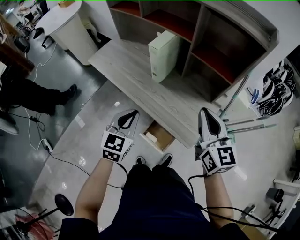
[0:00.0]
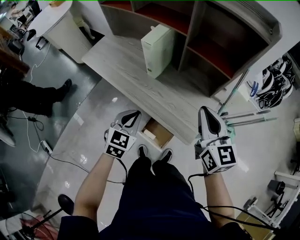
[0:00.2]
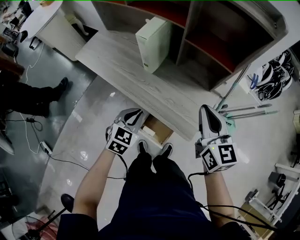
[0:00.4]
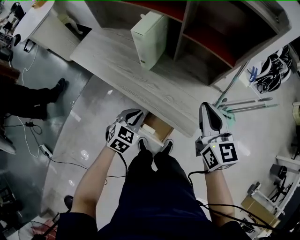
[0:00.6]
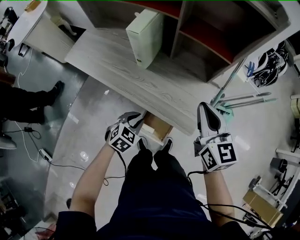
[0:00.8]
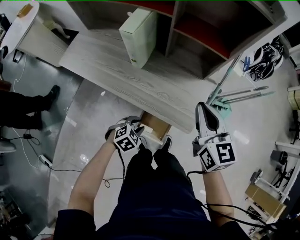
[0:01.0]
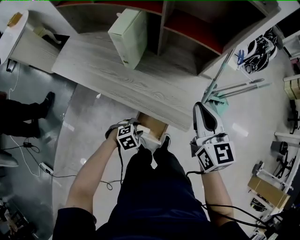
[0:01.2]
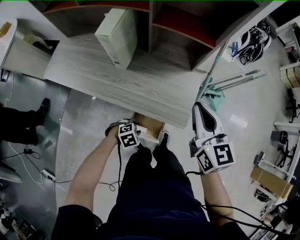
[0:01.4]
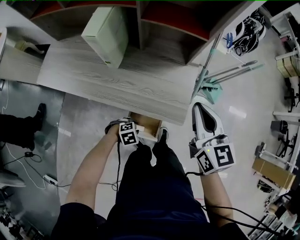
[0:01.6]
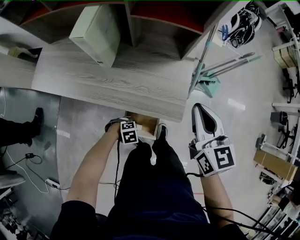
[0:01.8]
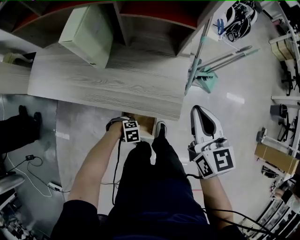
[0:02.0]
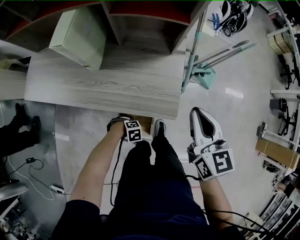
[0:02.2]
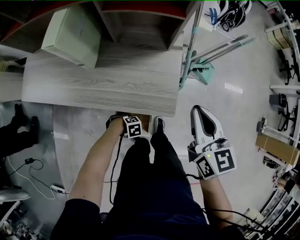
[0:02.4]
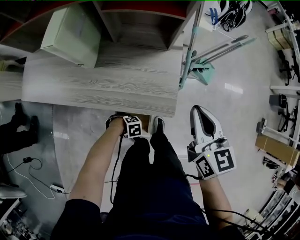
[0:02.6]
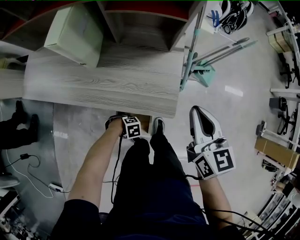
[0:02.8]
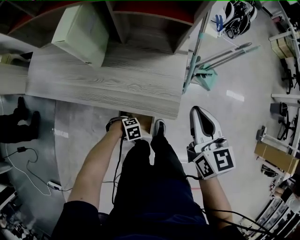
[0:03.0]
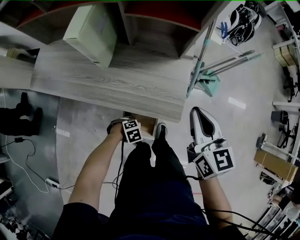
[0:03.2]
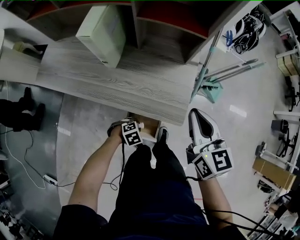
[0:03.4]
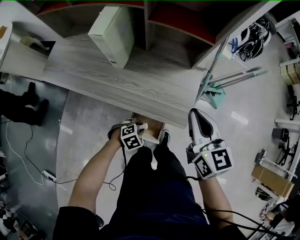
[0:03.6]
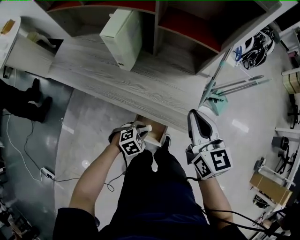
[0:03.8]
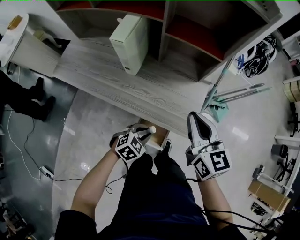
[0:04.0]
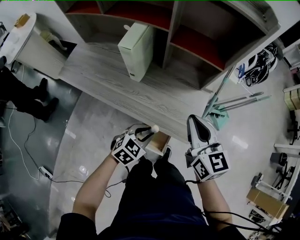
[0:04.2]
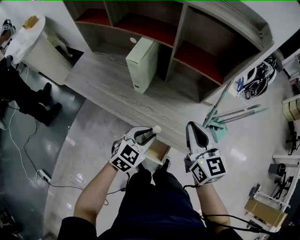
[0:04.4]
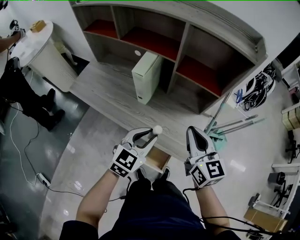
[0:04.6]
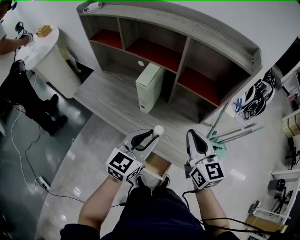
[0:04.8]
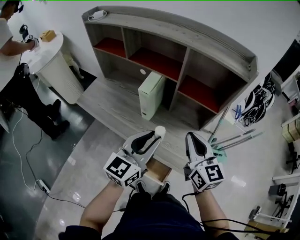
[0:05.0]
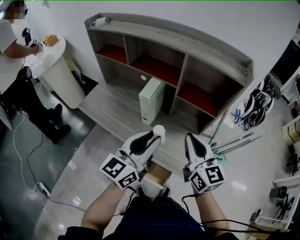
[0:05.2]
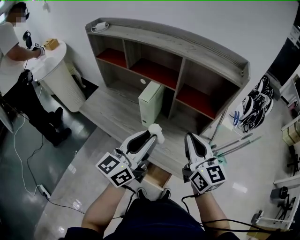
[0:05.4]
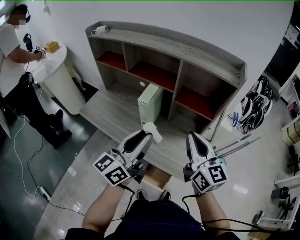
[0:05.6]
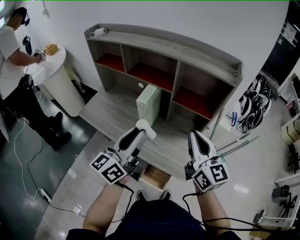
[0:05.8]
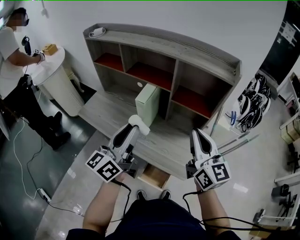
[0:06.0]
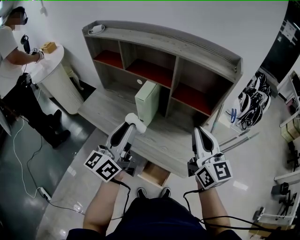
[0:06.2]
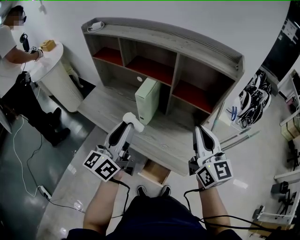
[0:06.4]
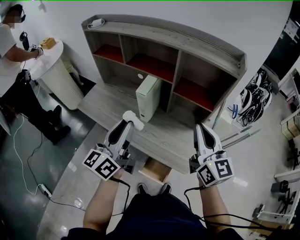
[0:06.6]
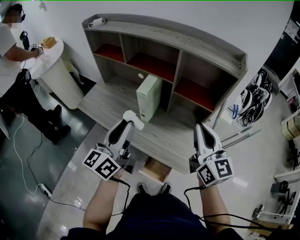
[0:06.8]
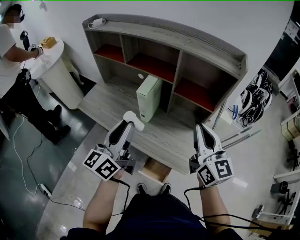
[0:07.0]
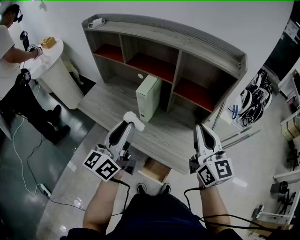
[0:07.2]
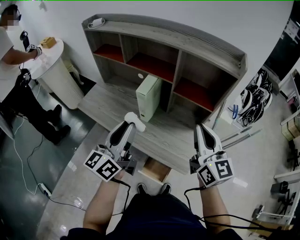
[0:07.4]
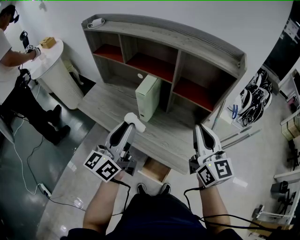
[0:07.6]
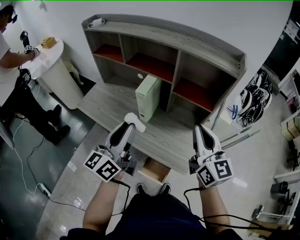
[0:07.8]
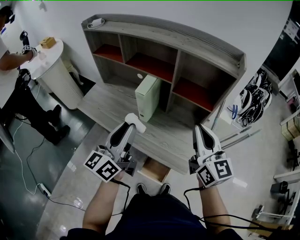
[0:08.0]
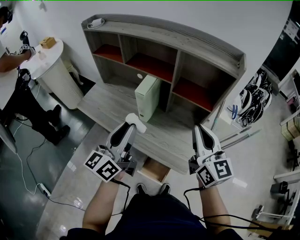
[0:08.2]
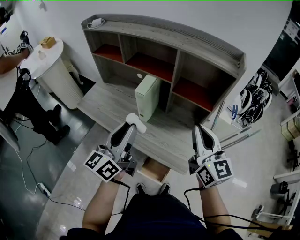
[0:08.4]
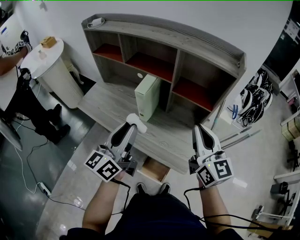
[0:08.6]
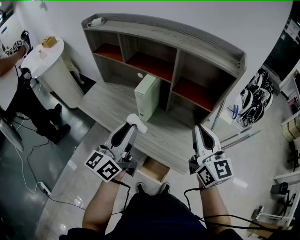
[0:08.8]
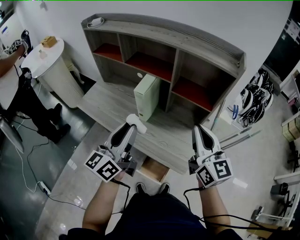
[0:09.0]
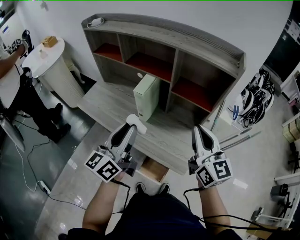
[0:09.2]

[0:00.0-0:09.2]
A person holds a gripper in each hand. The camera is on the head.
0:00.0 to 0:01.6: The left gripper heads downward, covering some 35 cm, tilts its fingers approximately 50 degrees downward, and opens up; the right gripper travels downward by about 10 cm, and swivels about 20 degrees.
0:01.6 to 0:03.0: The left gripper moves downward, some 5 cm. The right gripper changes place by roughly 5 cm.
0:03.0 to 0:04.6: The right gripper changes place by some 15 cm, and turns by roughly 20 degrees, while the left gripper goes roughly 40 cm upward, and points its fingers about 50 degrees further upward.
0:04.6 to 0:06.2: The left gripper heads upward and to the left, covering approximately 20 cm, and points its fingers about 30 degrees further upward, while the right gripper is displaced upward by roughly 15 cm.
0:06.2 to 0:09.2: There are only small adjustments of the grippers.

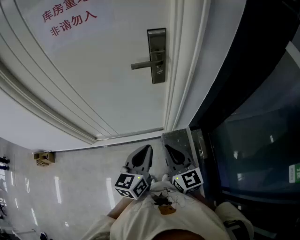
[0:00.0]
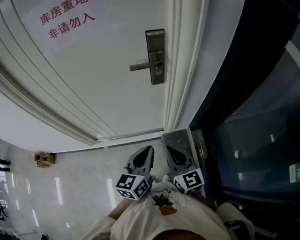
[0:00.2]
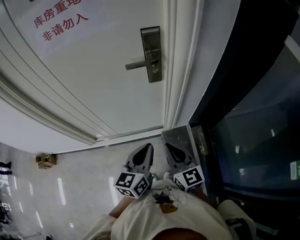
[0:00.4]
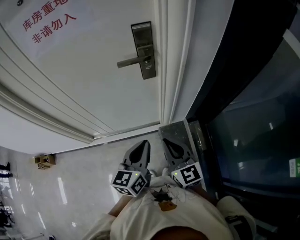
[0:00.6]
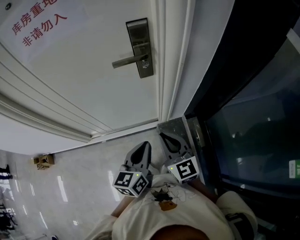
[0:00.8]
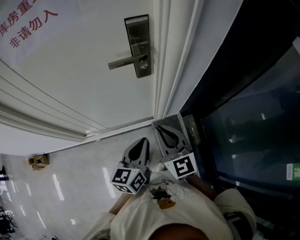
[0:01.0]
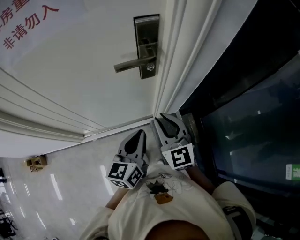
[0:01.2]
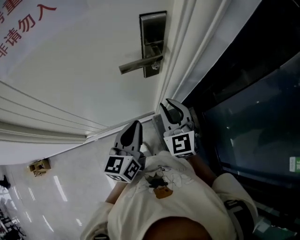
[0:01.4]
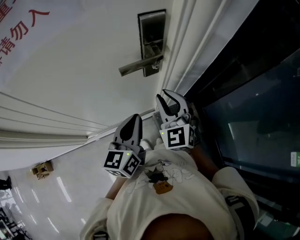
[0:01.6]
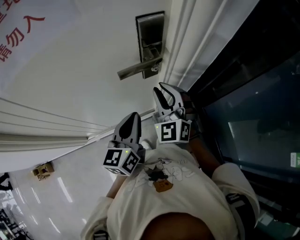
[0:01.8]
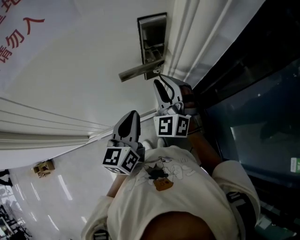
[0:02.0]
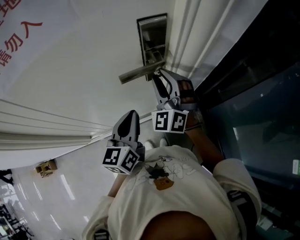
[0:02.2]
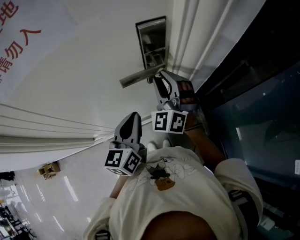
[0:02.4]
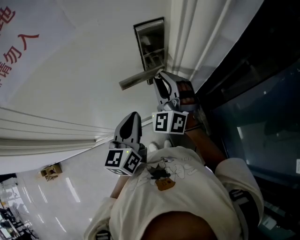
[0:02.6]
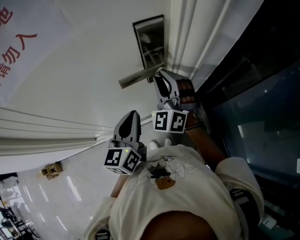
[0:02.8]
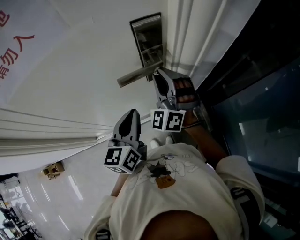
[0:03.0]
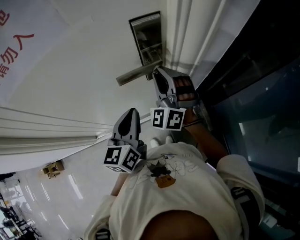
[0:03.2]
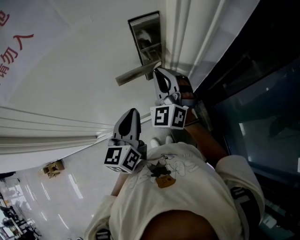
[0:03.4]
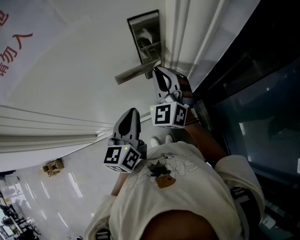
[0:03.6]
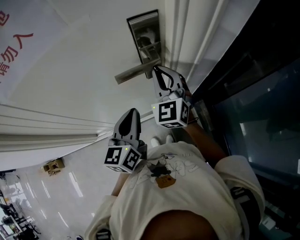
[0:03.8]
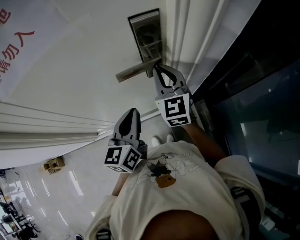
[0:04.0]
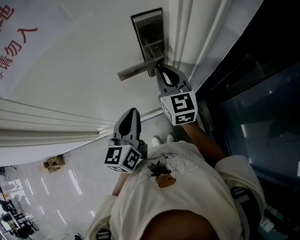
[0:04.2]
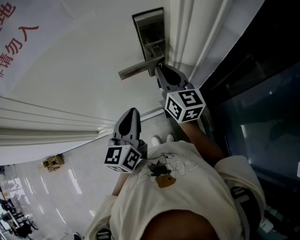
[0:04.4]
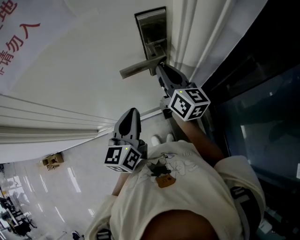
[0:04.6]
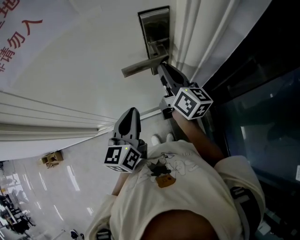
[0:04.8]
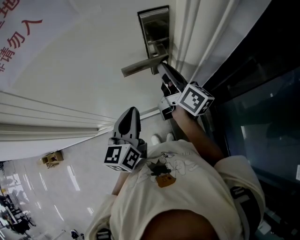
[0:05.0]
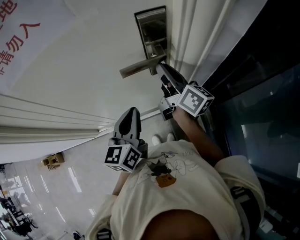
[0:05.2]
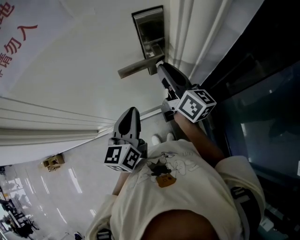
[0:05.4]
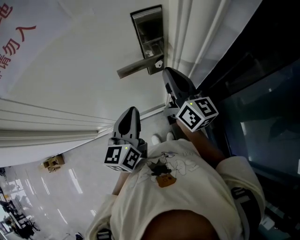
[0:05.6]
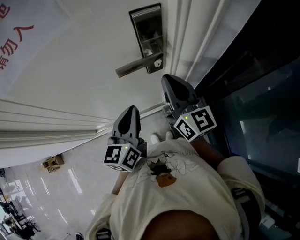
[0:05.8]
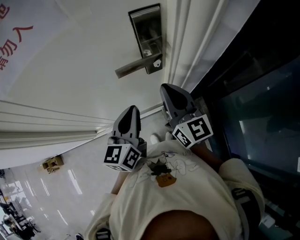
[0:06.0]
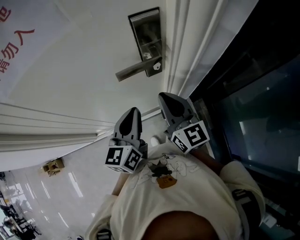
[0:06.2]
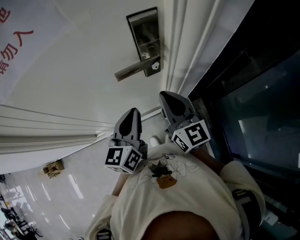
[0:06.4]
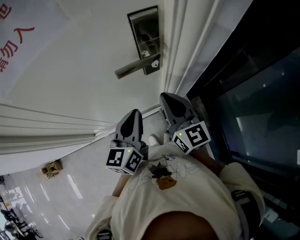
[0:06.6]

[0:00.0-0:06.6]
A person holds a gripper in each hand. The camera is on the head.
0:00.0 to 0:01.6: Both grippers travel together forward, roughly 20 cm. The right gripper changes its angle by about 40 degrees, and opens.
0:01.6 to 0:03.2: The right gripper travels forward by roughly 10 cm, and swivels approximately 30 degrees.
0:03.2 to 0:05.0: The right gripper rolls clockwise, seen from behind, by roughly 110 degrees.
0:05.0 to 0:06.6: The right gripper goes about 10 cm backward, and turns by about 40 degrees.

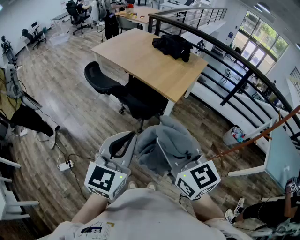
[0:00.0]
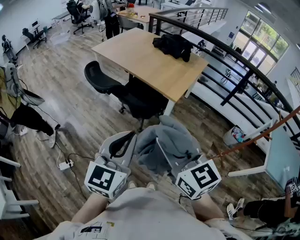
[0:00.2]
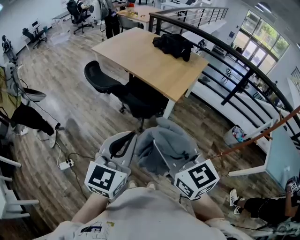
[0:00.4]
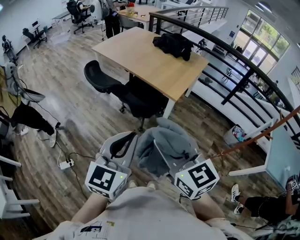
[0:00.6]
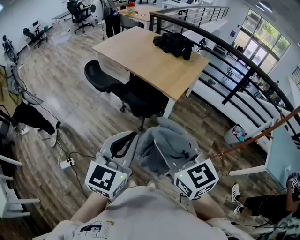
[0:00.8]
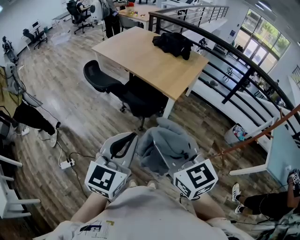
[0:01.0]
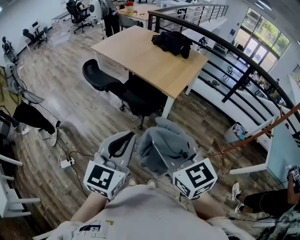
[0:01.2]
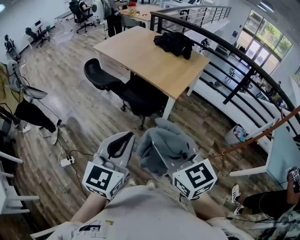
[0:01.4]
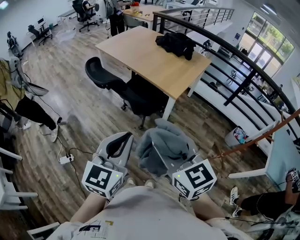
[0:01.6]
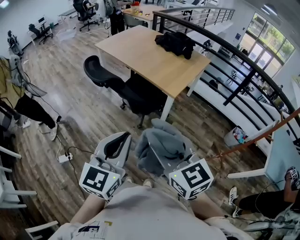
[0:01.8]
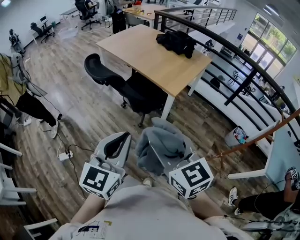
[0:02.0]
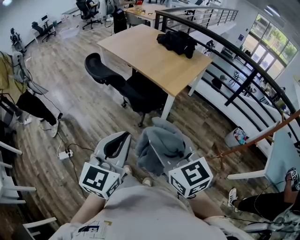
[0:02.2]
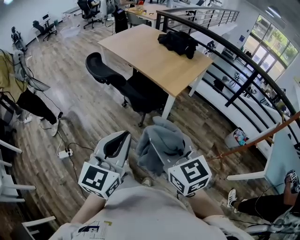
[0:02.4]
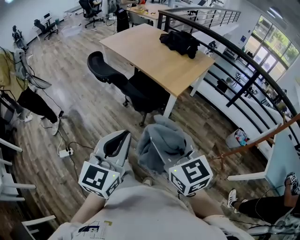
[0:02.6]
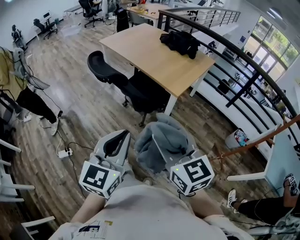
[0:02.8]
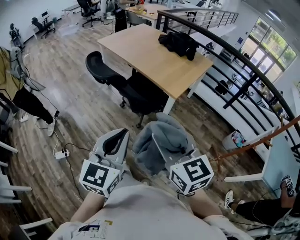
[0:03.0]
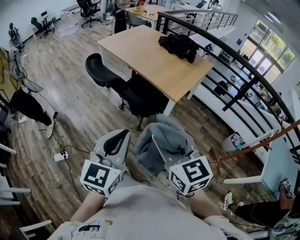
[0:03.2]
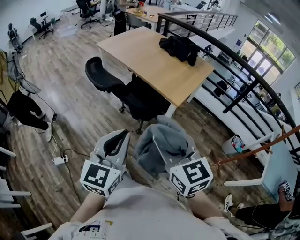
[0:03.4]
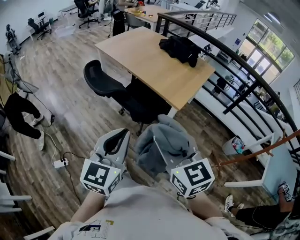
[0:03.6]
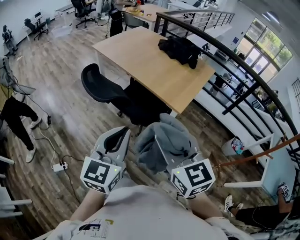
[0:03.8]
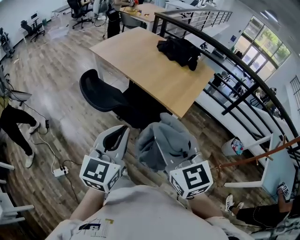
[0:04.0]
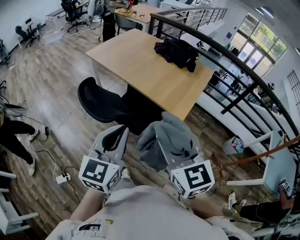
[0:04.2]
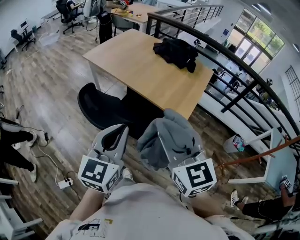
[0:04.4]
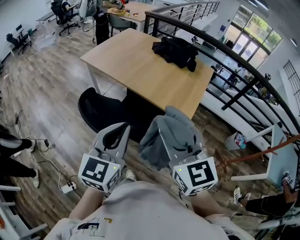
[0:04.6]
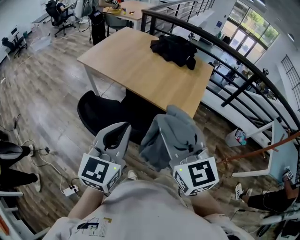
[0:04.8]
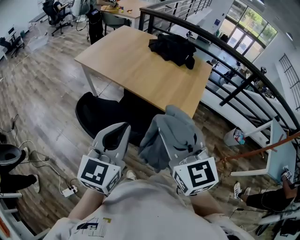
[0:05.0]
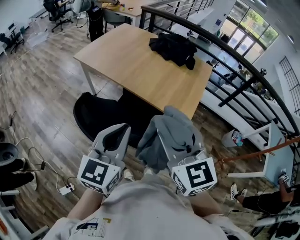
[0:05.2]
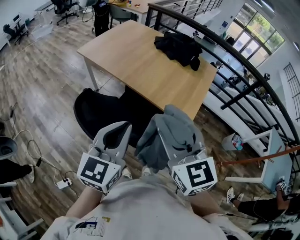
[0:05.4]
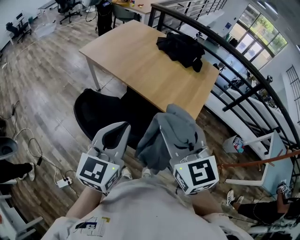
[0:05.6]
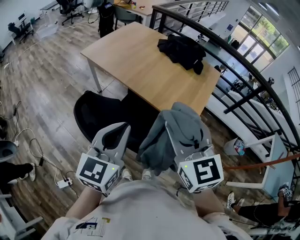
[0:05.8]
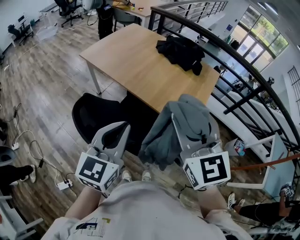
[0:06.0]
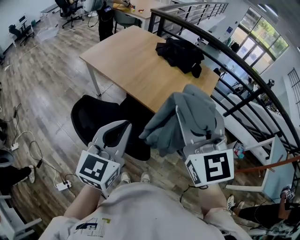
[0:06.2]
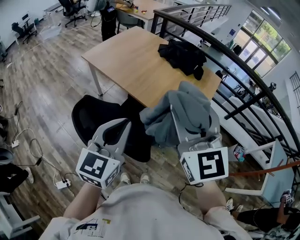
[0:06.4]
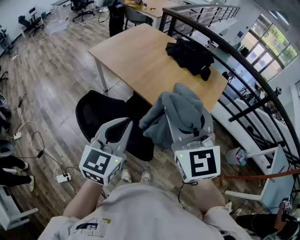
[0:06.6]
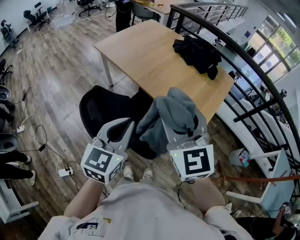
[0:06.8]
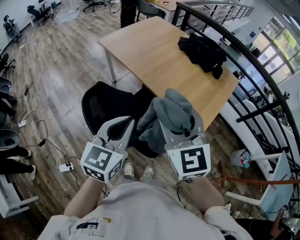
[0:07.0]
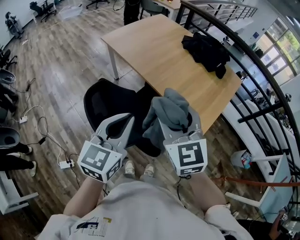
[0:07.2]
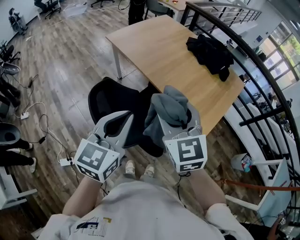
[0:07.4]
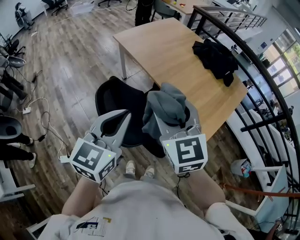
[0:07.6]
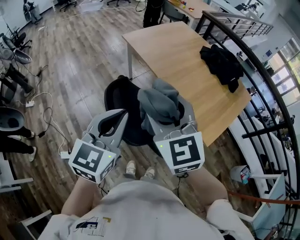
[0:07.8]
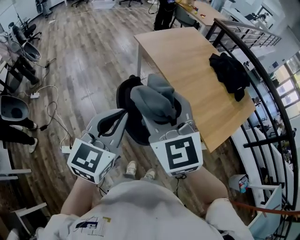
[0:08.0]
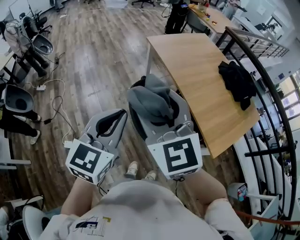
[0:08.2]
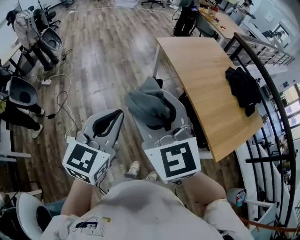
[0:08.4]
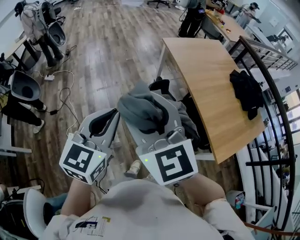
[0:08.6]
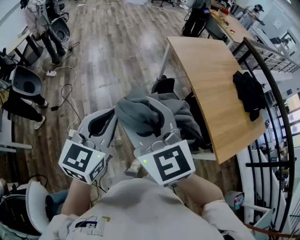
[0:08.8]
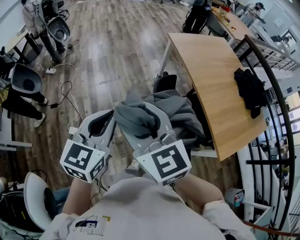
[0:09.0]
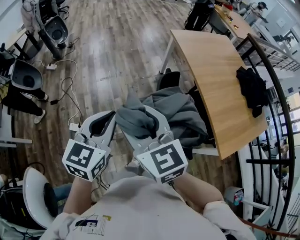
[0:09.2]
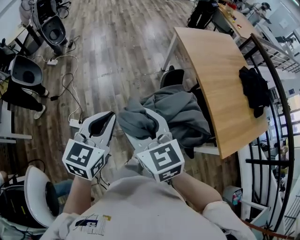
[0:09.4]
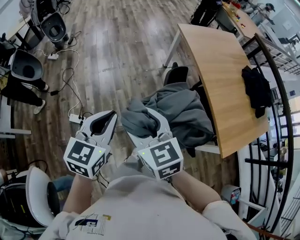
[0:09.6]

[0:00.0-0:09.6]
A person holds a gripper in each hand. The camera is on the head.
0:00.0 to 0:01.6: The grippers stay close to where they were, moving slightly.
0:01.6 to 0:03.2: The right gripper shifts by approximately 5 cm.
0:03.2 to 0:04.8: Both grippers travel together forward and to the left, some 35 cm.
0:04.8 to 0:06.4: The left gripper is displaced forward by roughly 10 cm. The right gripper moves forward and upward, some 15 cm.
0:06.4 to 0:08.0: The left gripper shifts by roughly 15 cm, and changes its angle by approximately 20 degrees, while the right gripper shifts by approximately 25 cm, and rotates about 30 degrees.
0:08.0 to 0:09.6: The grippers both shift to the left and downward by some 25 cm. The right gripper swivels approximately 30 degrees, while the left gripper changes its angle by about 20 degrees.
